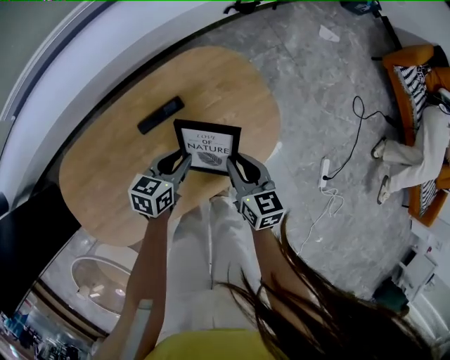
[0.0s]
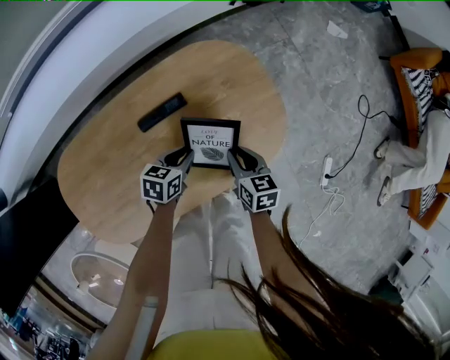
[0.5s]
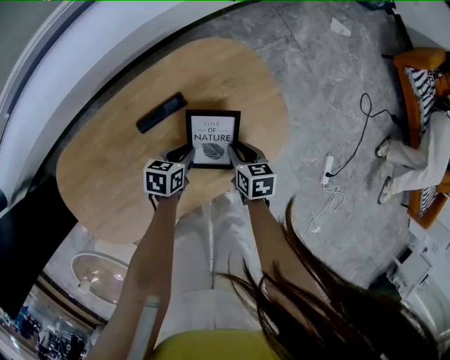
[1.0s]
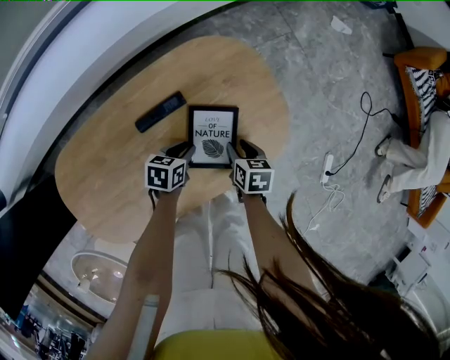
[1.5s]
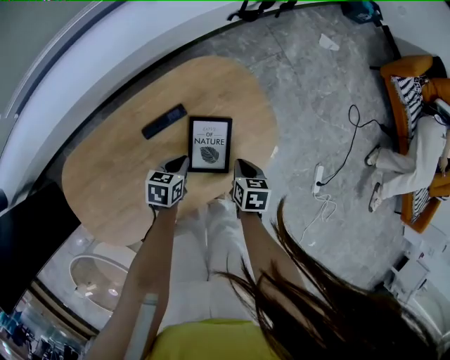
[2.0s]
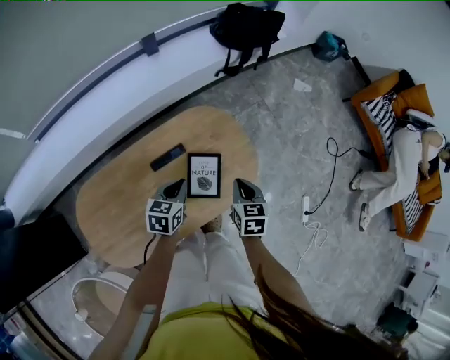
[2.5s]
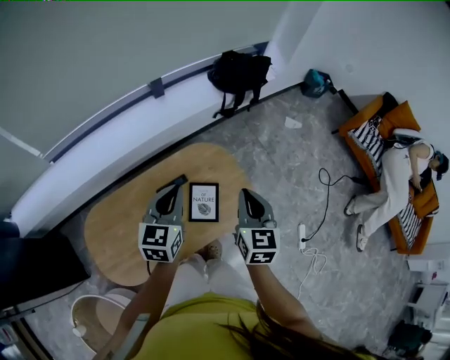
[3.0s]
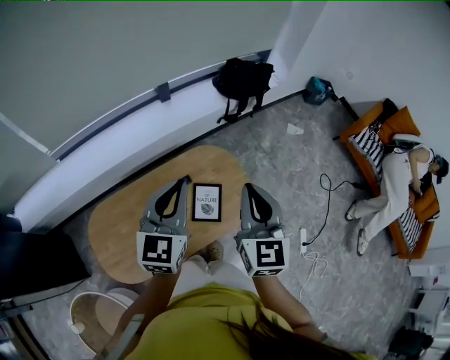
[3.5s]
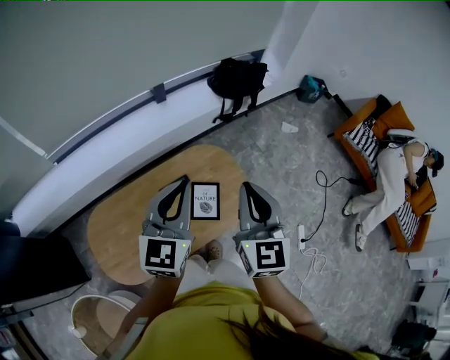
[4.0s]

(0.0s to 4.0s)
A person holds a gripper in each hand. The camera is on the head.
0.0s - 2.0s: The two grippers go approximately 5 cm downward. The right gripper swivels approximately 30 degrees.
2.0s - 4.0s: Both grippers move upward, some 50 cm. The right gripper angles its fingers upward, by approximately 50 degrees. Meanwhile the left gripper angles its fingers upward, by roughly 50 degrees.

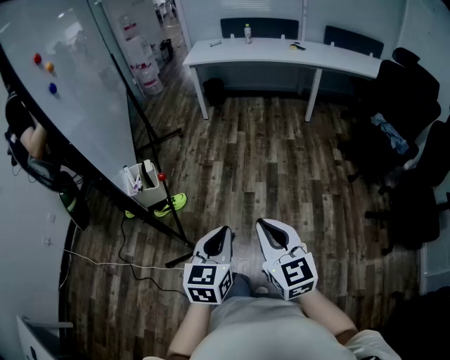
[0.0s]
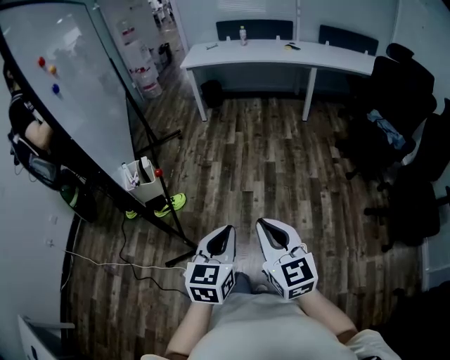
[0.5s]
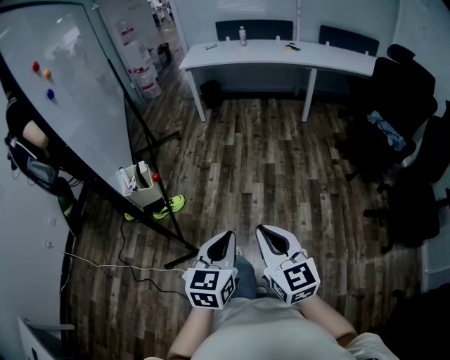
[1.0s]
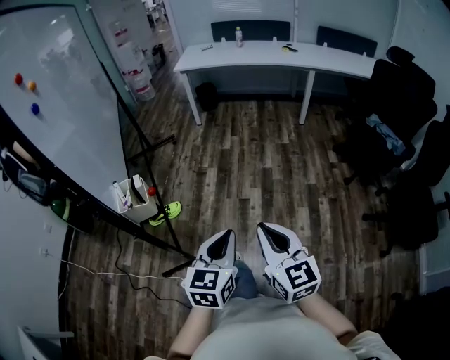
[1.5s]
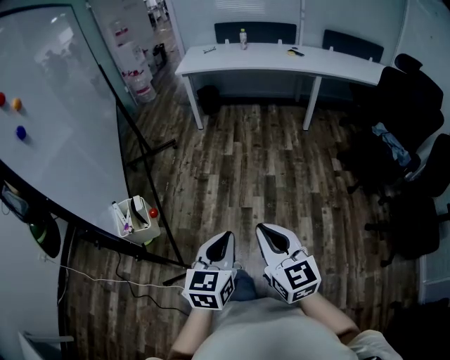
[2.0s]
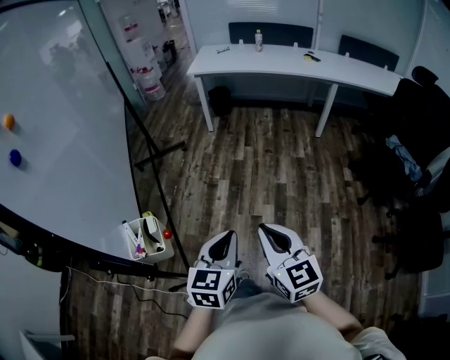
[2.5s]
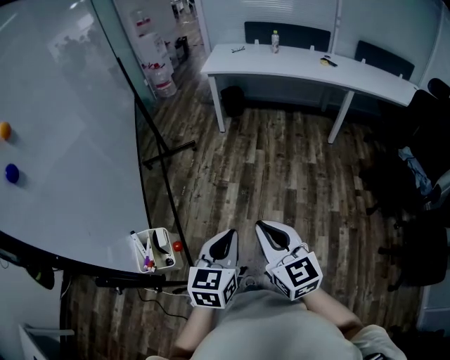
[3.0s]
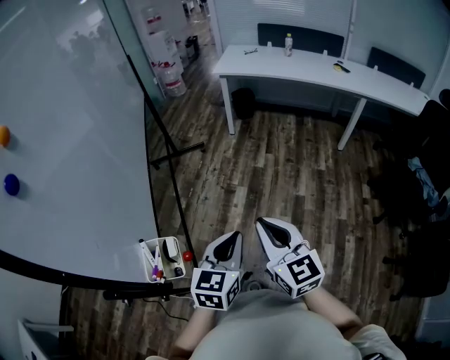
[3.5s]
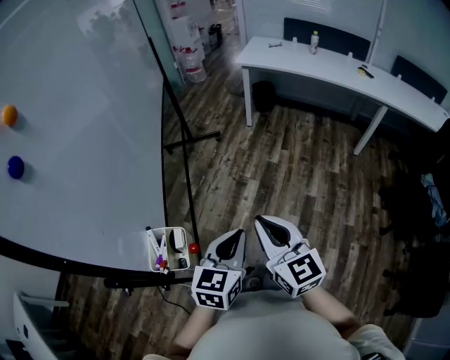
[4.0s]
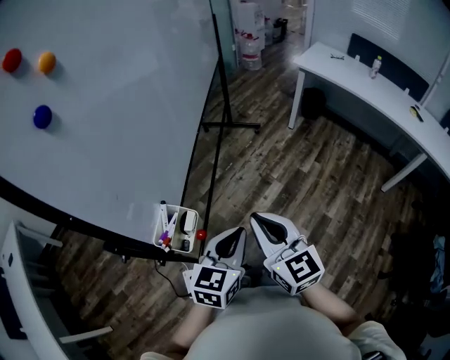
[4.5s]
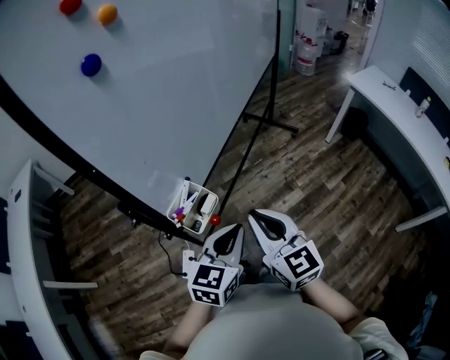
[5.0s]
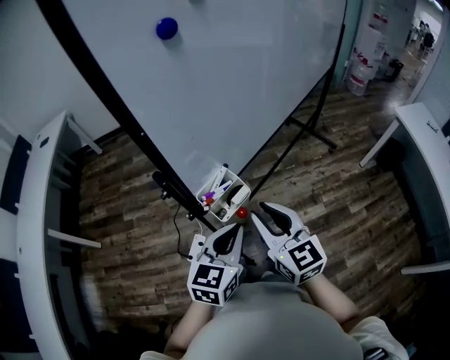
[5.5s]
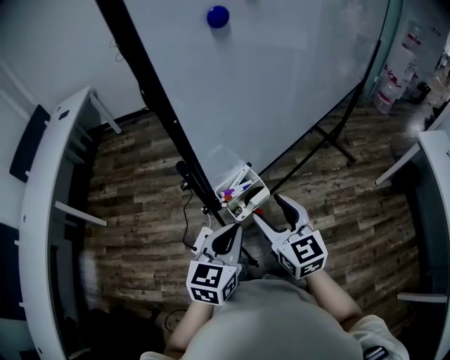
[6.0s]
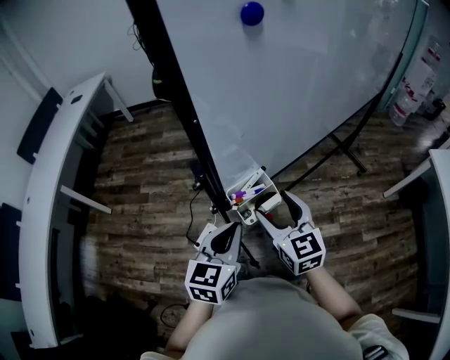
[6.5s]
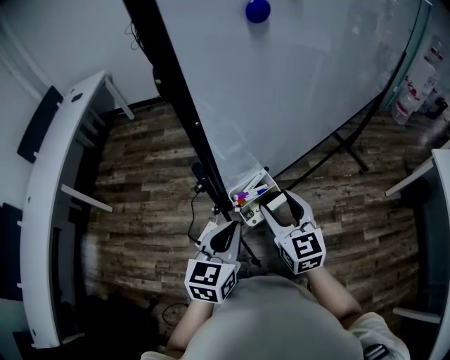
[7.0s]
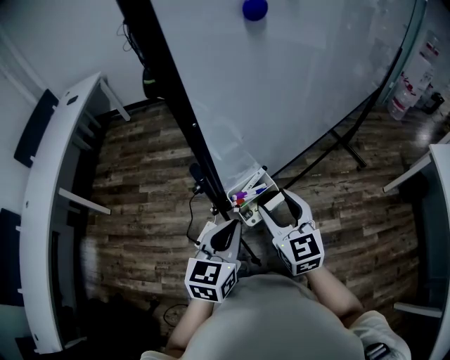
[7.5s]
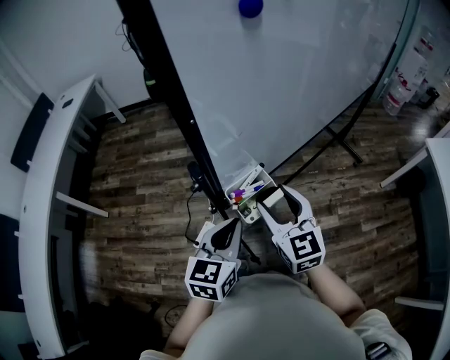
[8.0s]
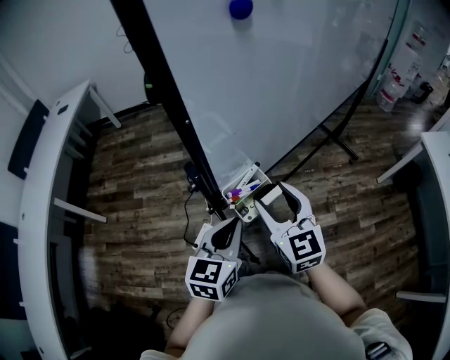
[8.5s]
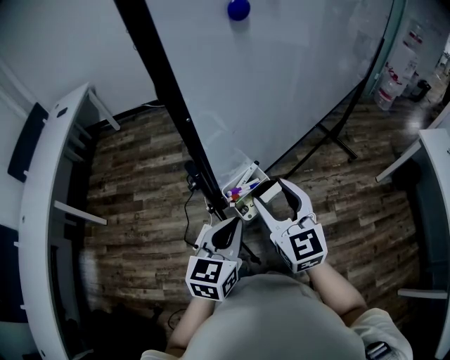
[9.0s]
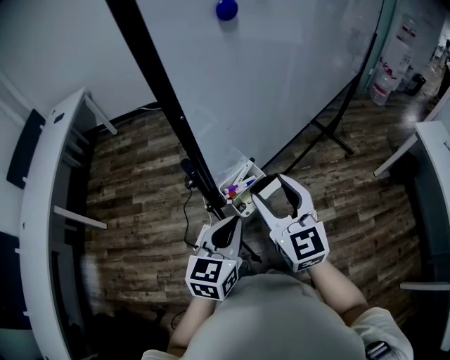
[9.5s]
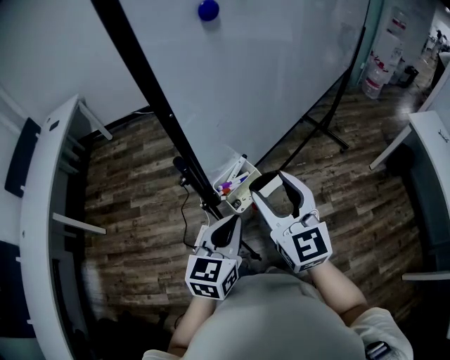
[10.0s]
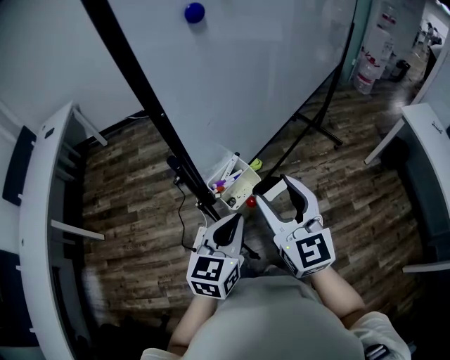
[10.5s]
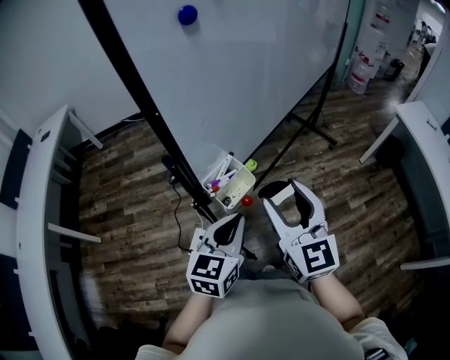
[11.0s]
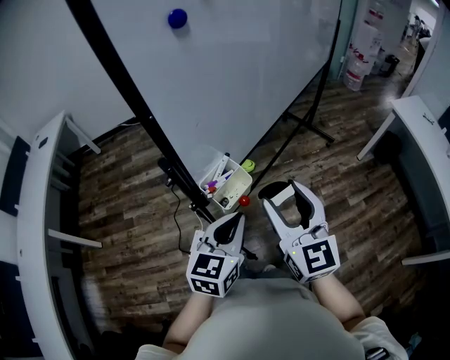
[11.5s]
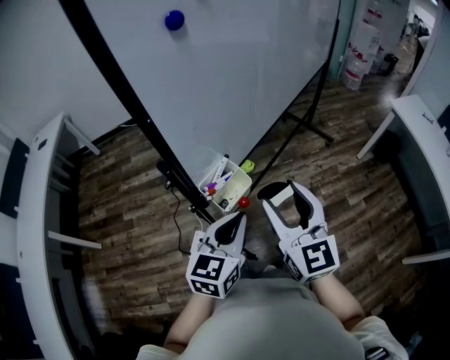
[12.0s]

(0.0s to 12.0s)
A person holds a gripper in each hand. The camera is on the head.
0.0s - 2.0s: Both grippers move forward, roughly 10 cm.
2.0s - 4.0s: Both grippers travel together forward and to the left, approximately 25 cm.
4.0s - 6.0s: The right gripper changes place by roughly 20 cm, rotates approximately 60 degrees, and opens up, while the left gripper moves about 15 cm, and turns by approximately 60 degrees.
6.0s - 8.0s: The grippers move only a little.
8.0s - 10.0s: The right gripper heads upward, covering roughly 10 cm.
10.0s - 12.0s: The left gripper moves about 5 cm, while the right gripper shifts approximately 5 cm to the right.

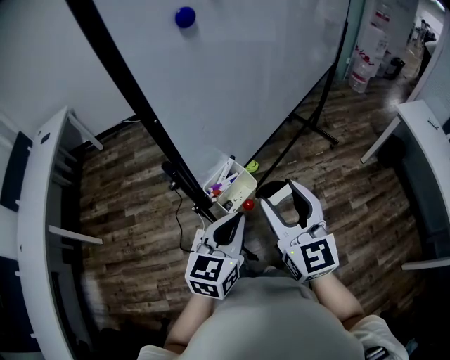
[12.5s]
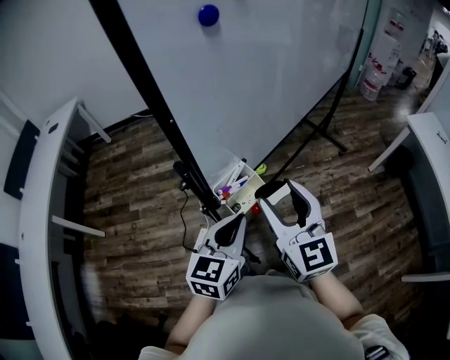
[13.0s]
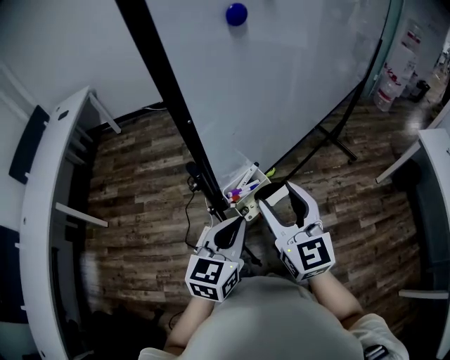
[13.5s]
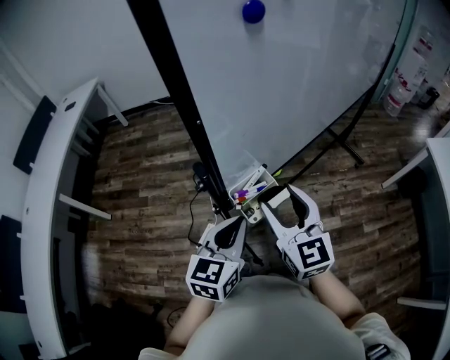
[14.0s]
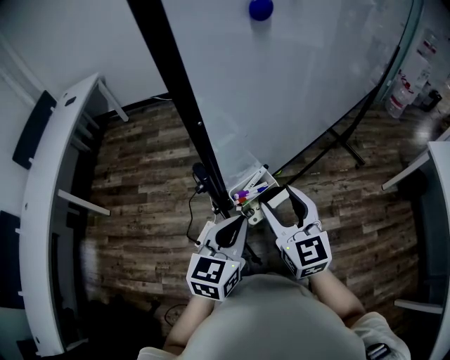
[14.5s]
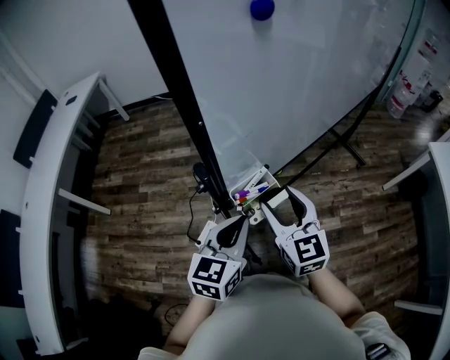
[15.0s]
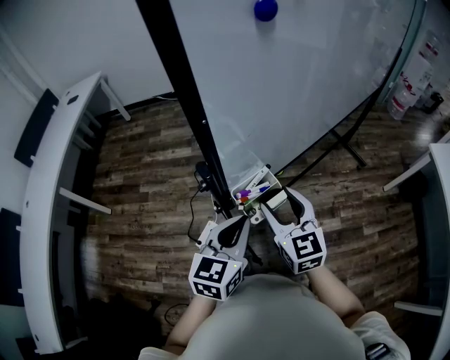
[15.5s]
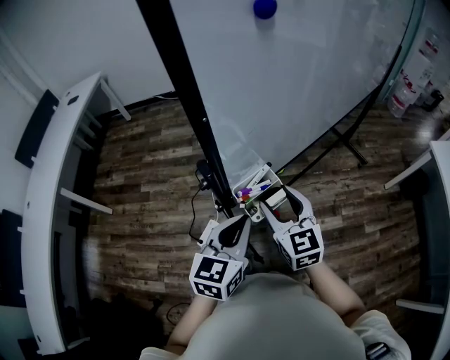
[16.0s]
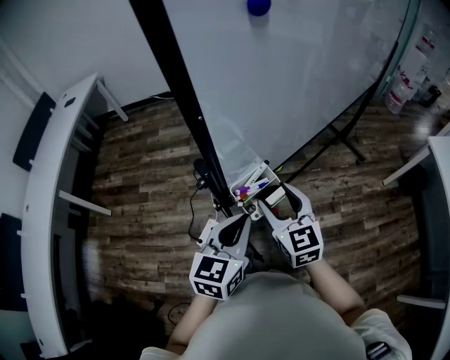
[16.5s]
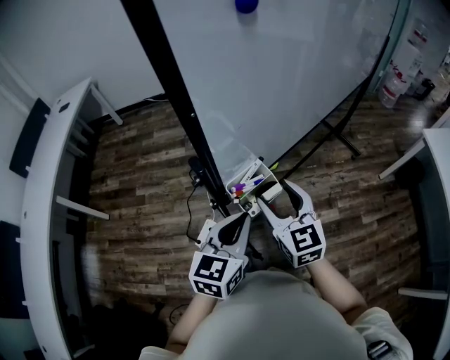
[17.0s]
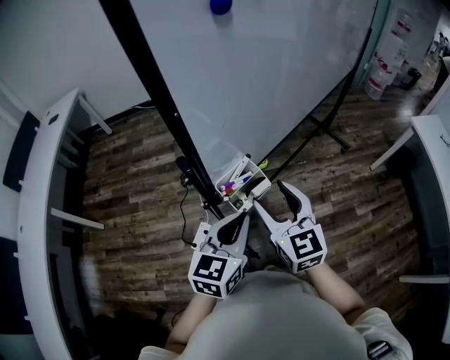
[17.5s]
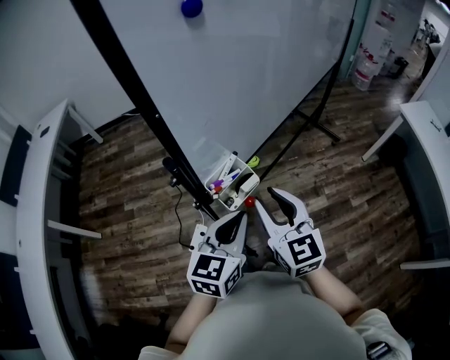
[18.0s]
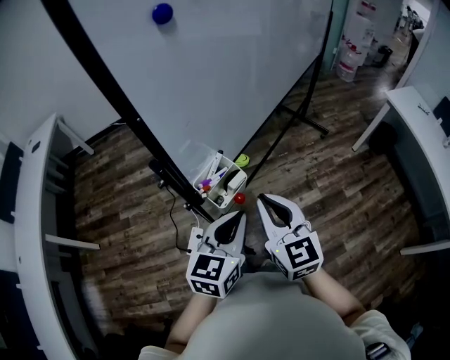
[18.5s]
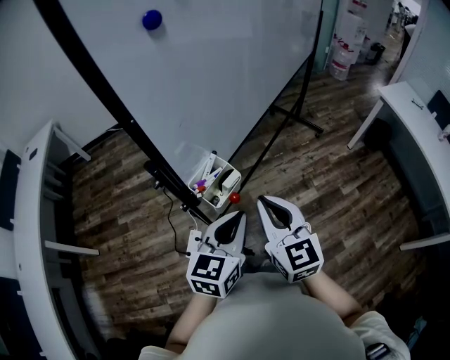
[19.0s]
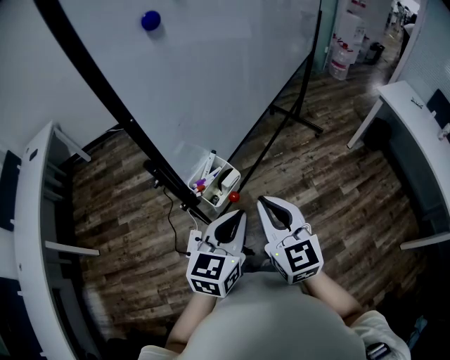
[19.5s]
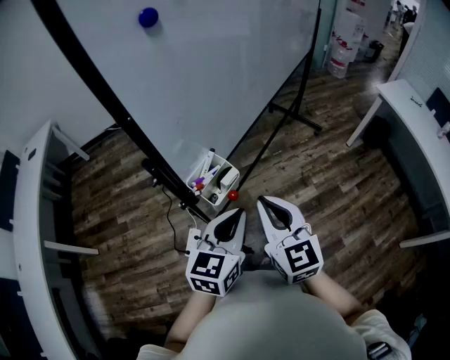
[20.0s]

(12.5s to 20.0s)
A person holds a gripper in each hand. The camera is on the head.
12.5s - 14.5s: The left gripper moves approximately 5 cm; the right gripper shifts roughly 10 cm to the left, forward and downward.
14.5s - 16.5s: There are only small adjustments of the grippers.
16.5s - 18.0s: The left gripper ends up some 5 cm from where it was. The right gripper heads backward, covering approximately 5 cm, and closes its fingers.
18.0s - 20.0s: The right gripper shifts by roughly 5 cm, and closes.

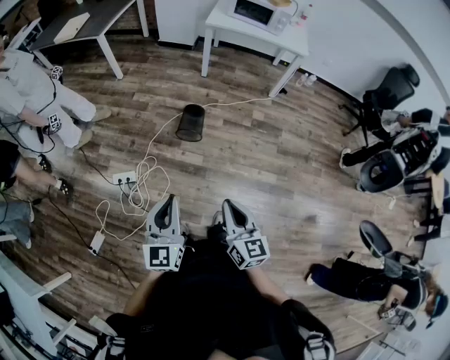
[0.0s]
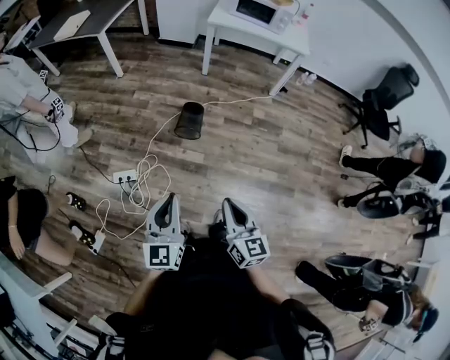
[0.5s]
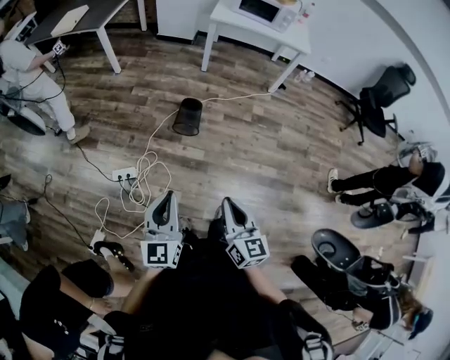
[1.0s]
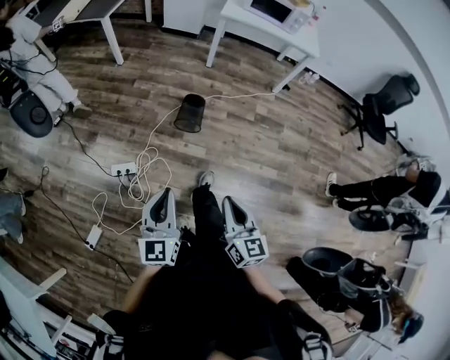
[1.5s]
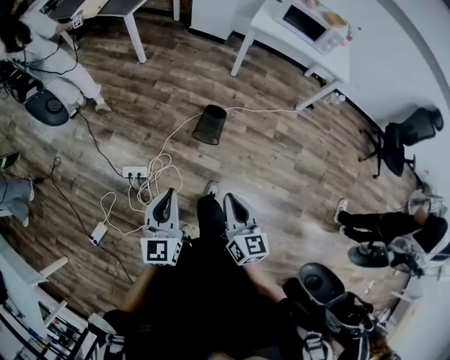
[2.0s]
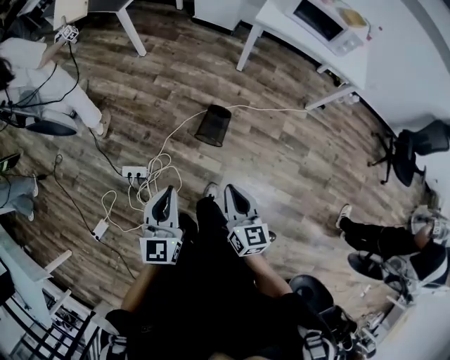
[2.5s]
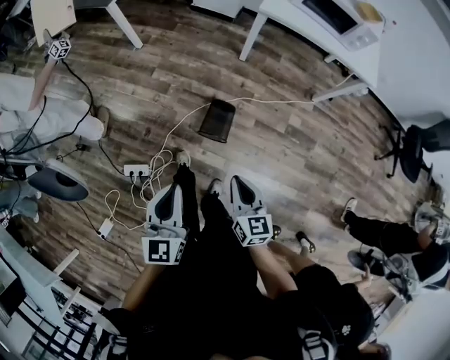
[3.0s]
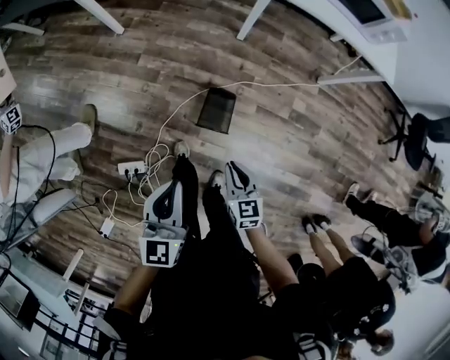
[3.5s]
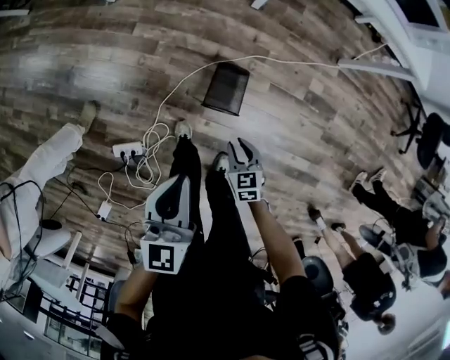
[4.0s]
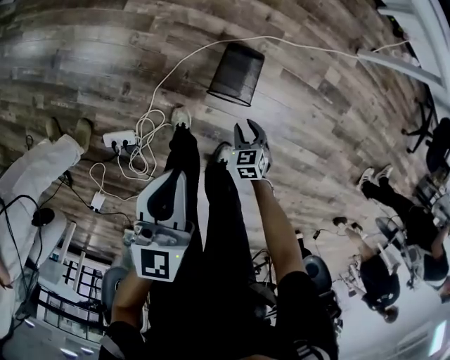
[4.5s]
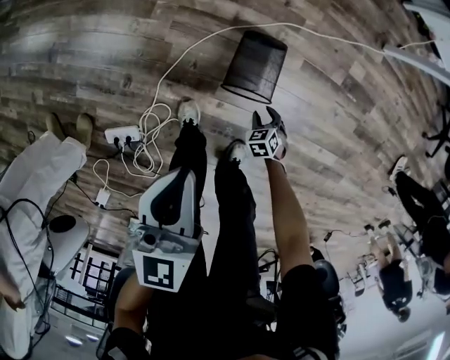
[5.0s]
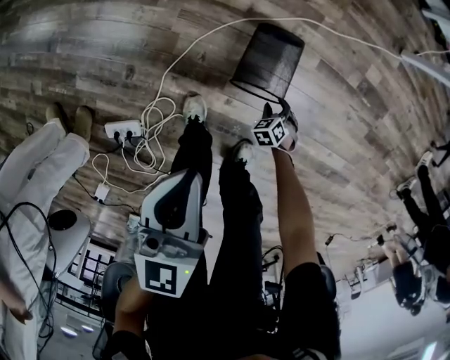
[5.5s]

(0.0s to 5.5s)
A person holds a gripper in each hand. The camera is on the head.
0.0s - 2.0s: The grippers both shift forward and to the left by about 20 cm.
2.0s - 3.5s: The right gripper moves forward and downward, roughly 40 cm, and turns by some 20 degrees. Meanwhile the left gripper travels forward by approximately 35 cm.
3.5s - 5.5s: The left gripper moves downward, approximately 30 cm, while the right gripper goes approximately 60 cm downward, angles its fingers downward, by about 40 degrees, and opens.
